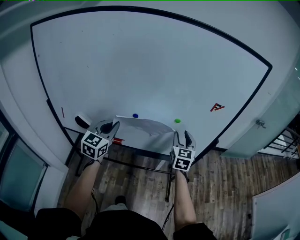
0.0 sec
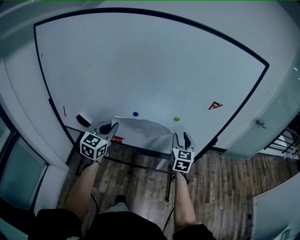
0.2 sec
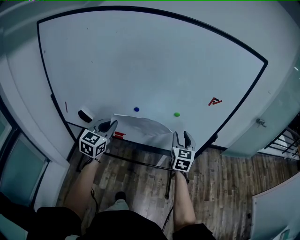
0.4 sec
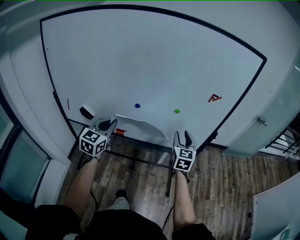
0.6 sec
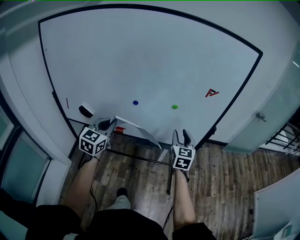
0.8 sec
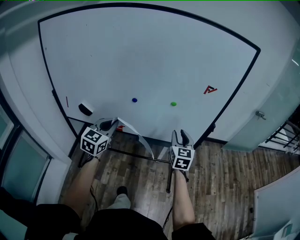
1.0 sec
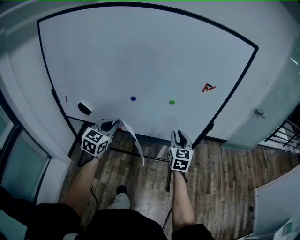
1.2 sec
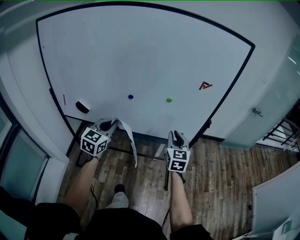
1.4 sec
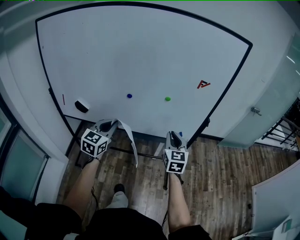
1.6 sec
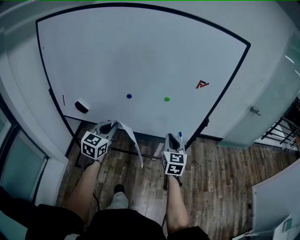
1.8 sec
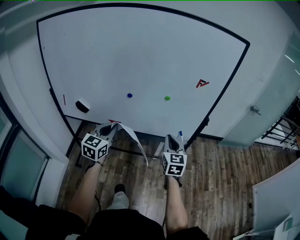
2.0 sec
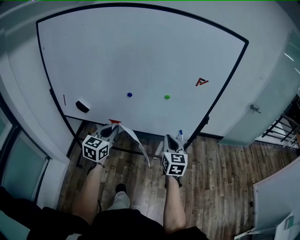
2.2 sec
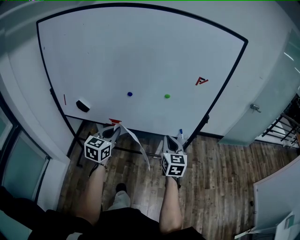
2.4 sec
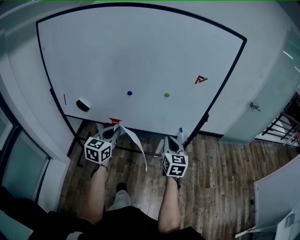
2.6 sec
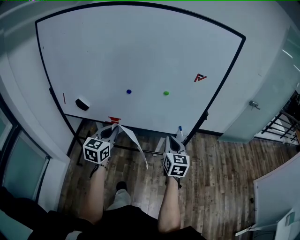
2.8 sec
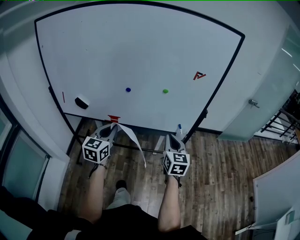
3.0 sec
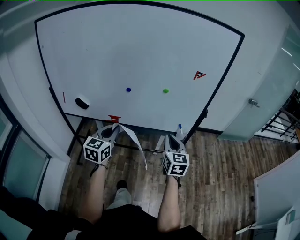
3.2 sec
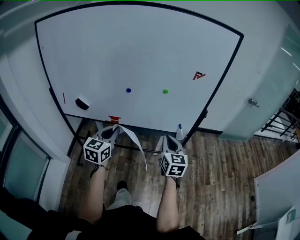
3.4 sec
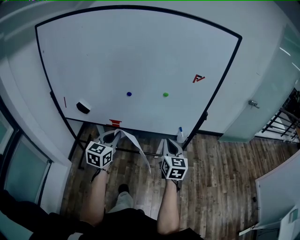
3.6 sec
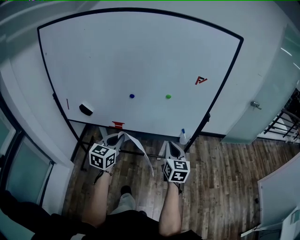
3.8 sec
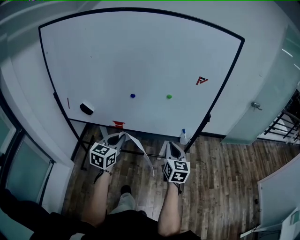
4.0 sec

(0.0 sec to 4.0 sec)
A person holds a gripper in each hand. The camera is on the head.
0.0 sec - 1.4 sec: The right gripper moves backward, roughly 10 cm, and closes up. Meanwhile the left gripper goes about 10 cm backward and to the right.
1.4 sec - 2.6 sec: The grippers both shift backward by roughly 5 cm.
2.6 sec - 4.0 sec: The grippers move only a little.

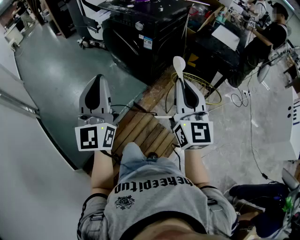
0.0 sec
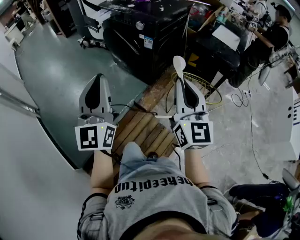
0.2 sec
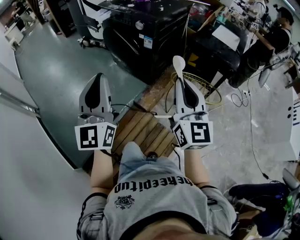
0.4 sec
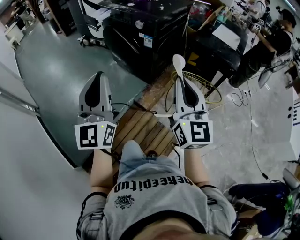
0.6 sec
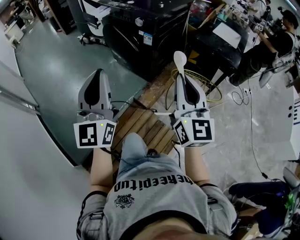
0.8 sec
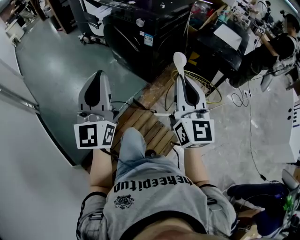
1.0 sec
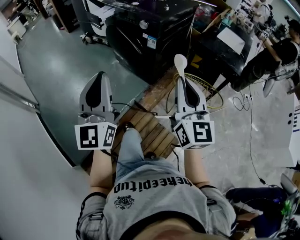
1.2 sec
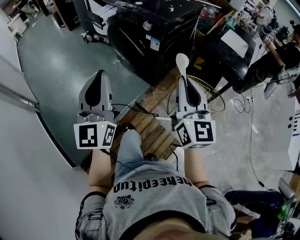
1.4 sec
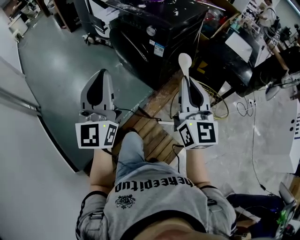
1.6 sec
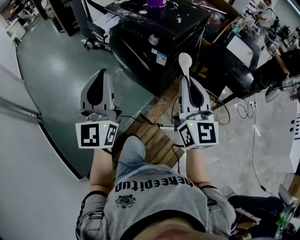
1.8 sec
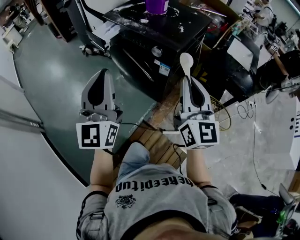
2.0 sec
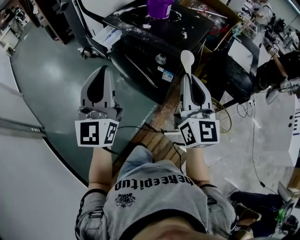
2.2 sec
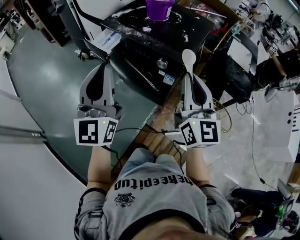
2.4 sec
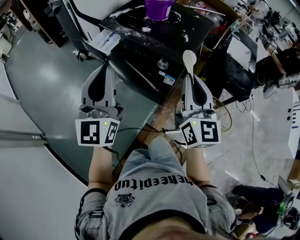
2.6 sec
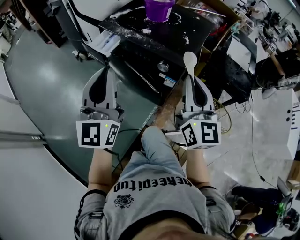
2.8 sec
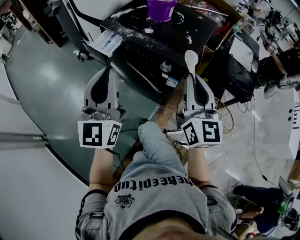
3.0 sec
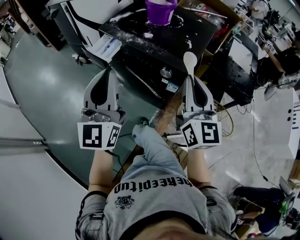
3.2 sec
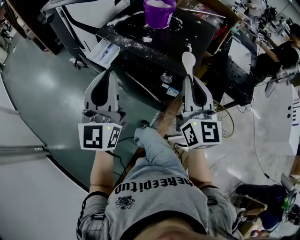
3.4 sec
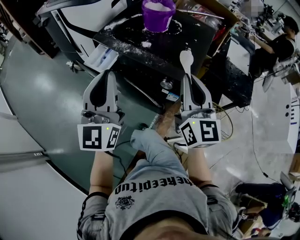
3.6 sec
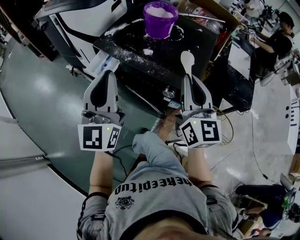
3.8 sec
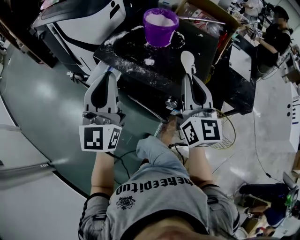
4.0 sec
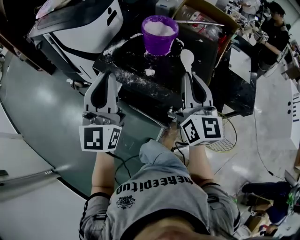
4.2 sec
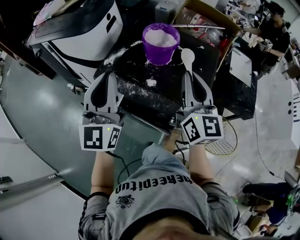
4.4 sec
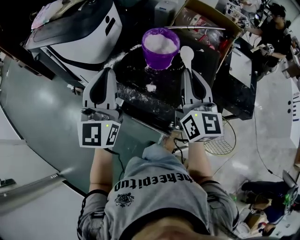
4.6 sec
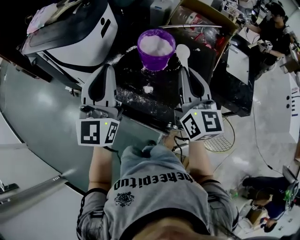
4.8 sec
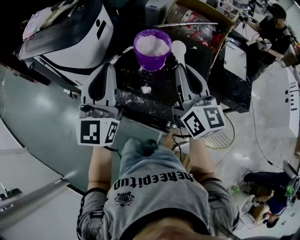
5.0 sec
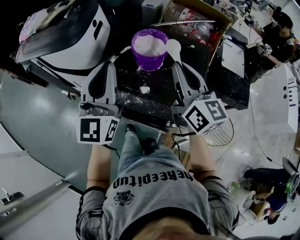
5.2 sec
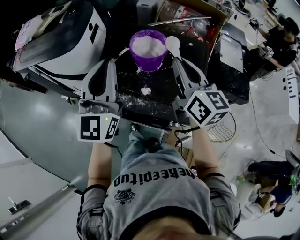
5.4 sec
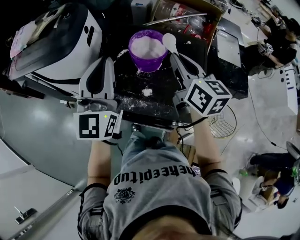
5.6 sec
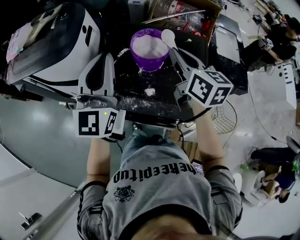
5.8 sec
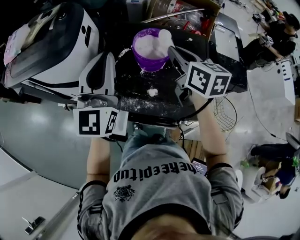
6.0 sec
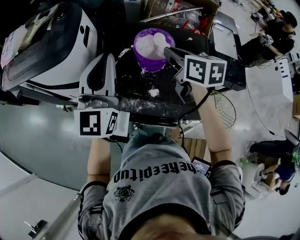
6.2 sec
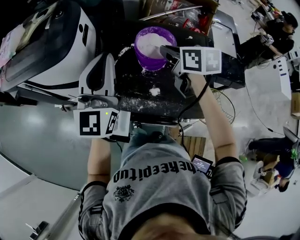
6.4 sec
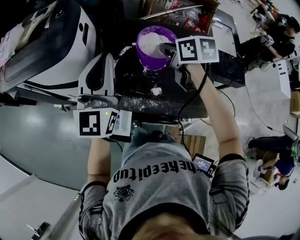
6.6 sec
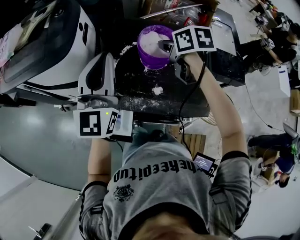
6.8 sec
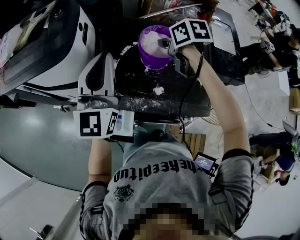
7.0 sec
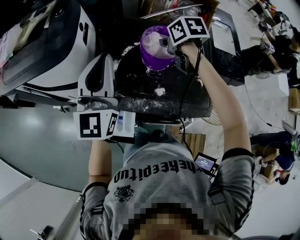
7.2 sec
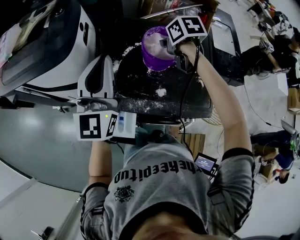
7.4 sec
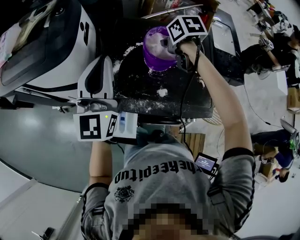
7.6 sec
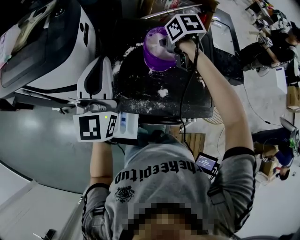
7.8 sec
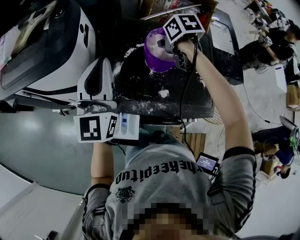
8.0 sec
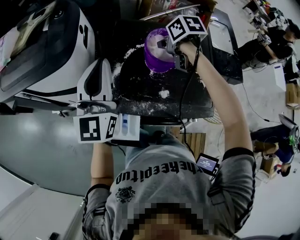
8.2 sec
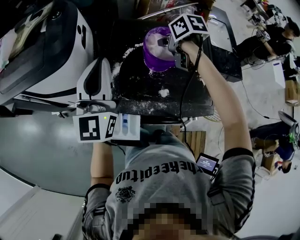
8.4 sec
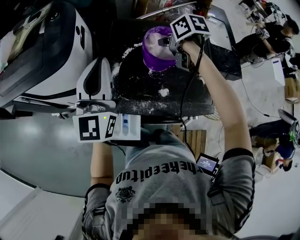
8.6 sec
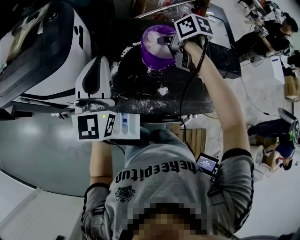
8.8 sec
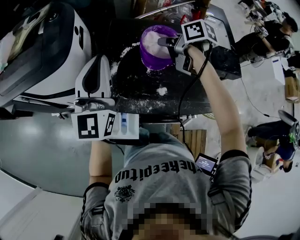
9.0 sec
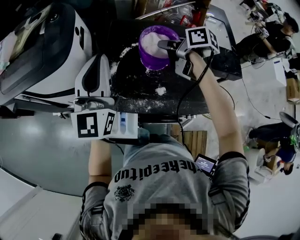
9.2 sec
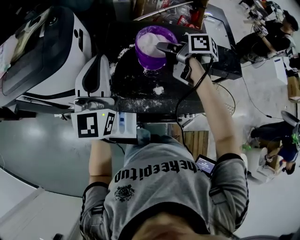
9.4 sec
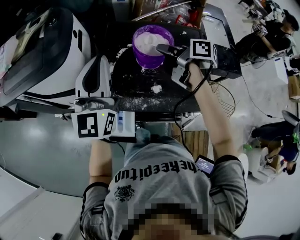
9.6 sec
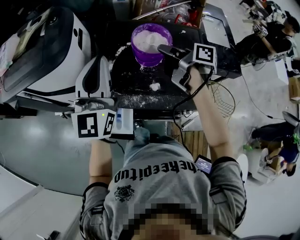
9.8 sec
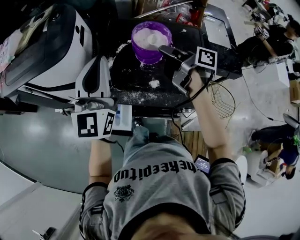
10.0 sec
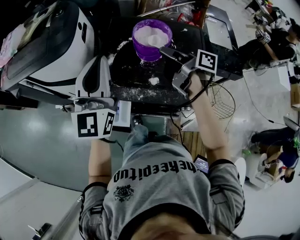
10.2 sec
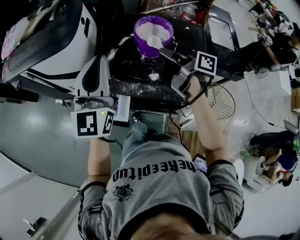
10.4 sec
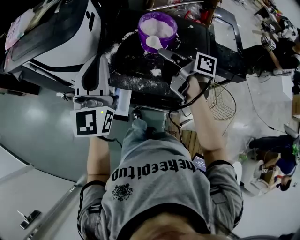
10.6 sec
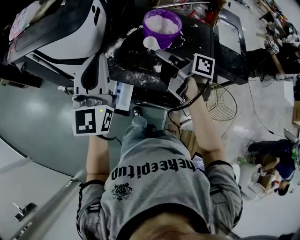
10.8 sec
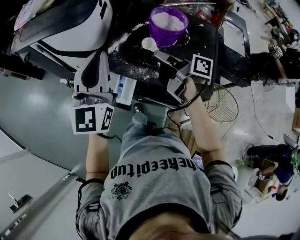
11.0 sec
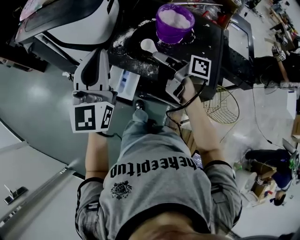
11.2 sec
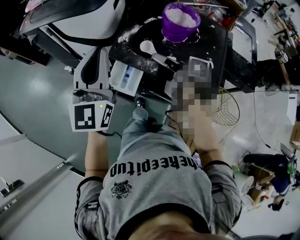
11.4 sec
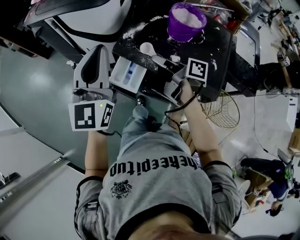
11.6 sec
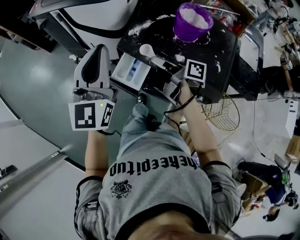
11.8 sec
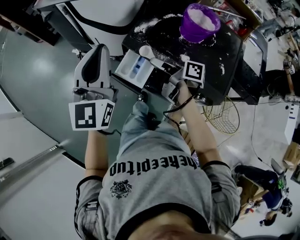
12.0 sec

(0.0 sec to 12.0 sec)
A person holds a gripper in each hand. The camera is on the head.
0.0 sec - 1.6 sec: Both grippers move forward, approximately 10 cm.
1.6 sec - 3.0 sec: The right gripper moves forward and to the left, approximately 25 cm; the left gripper moves forward, approximately 30 cm.
3.0 sec - 4.4 sec: Both grippers move forward, approximately 30 cm.
4.4 sec - 6.0 sec: Both grippers move forward, about 15 cm. The right gripper changes its angle by roughly 30 degrees.
6.0 sec - 7.6 sec: The right gripper heads downward and forward, covering approximately 15 cm, and tips its fingers downward by roughly 40 degrees, while the left gripper is displaced to the left by approximately 5 cm.
7.6 sec - 9.0 sec: The right gripper changes its angle by approximately 30 degrees.
9.0 sec - 10.4 sec: The grippers both shift backward by about 10 cm. The right gripper points its fingers some 30 degrees further upward.
10.4 sec - 12.0 sec: The right gripper travels to the left and downward by about 25 cm, and turns by roughly 30 degrees, while the left gripper is displaced to the left and backward by some 15 cm, and swivels approximately 20 degrees.

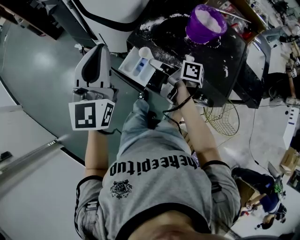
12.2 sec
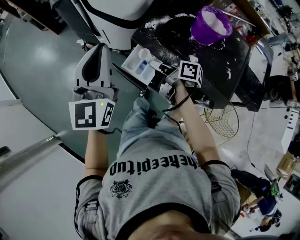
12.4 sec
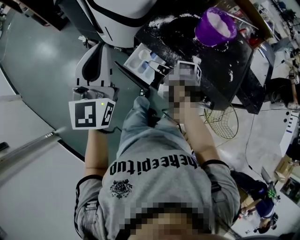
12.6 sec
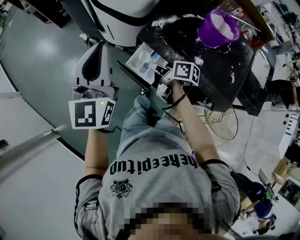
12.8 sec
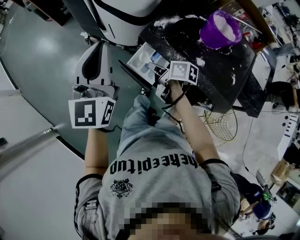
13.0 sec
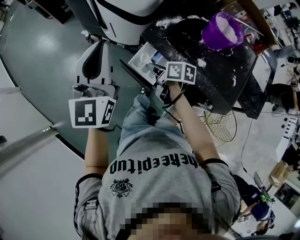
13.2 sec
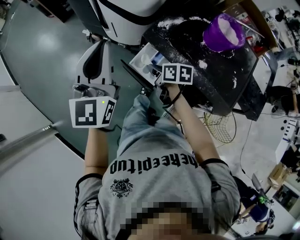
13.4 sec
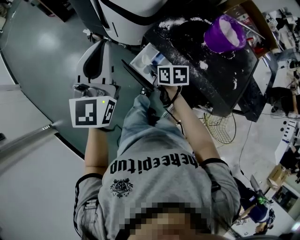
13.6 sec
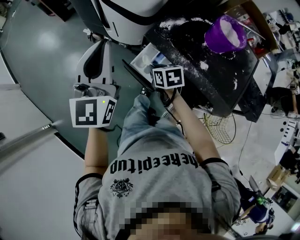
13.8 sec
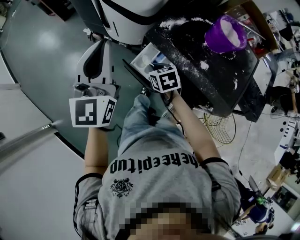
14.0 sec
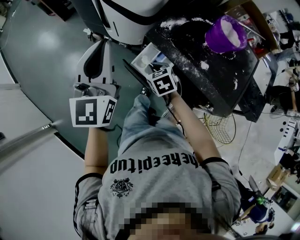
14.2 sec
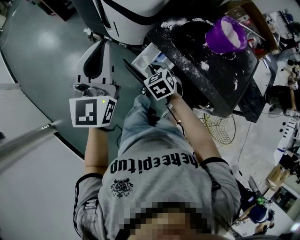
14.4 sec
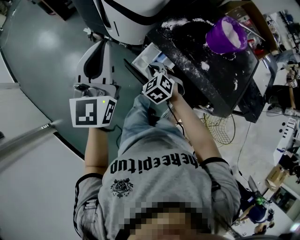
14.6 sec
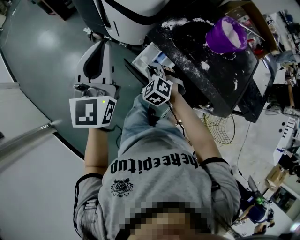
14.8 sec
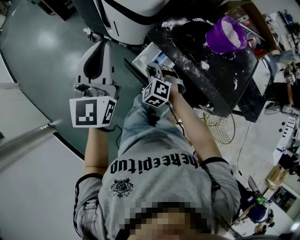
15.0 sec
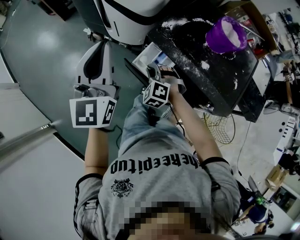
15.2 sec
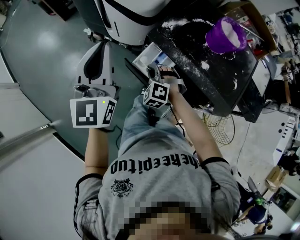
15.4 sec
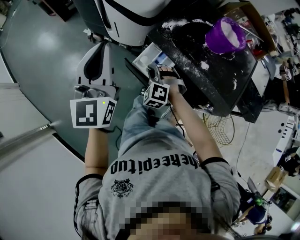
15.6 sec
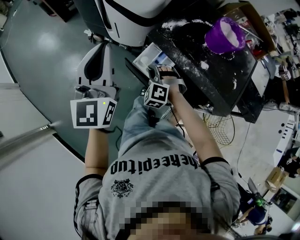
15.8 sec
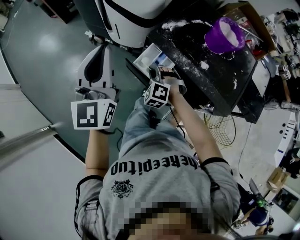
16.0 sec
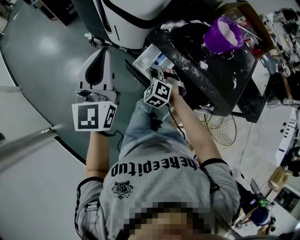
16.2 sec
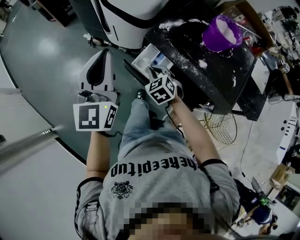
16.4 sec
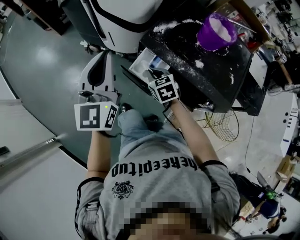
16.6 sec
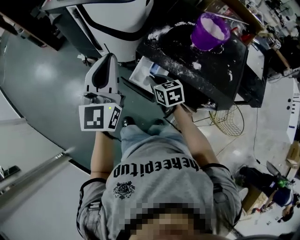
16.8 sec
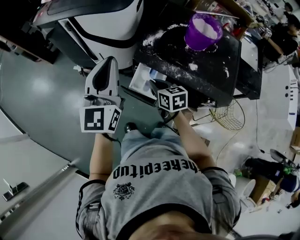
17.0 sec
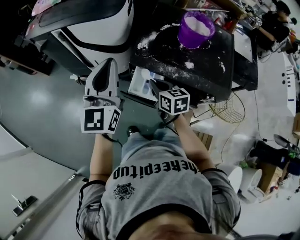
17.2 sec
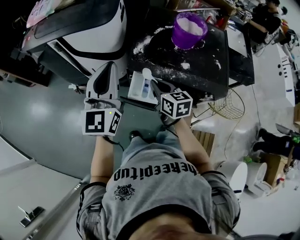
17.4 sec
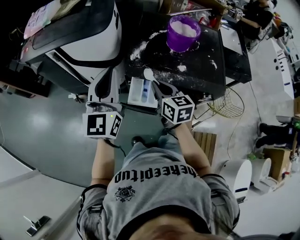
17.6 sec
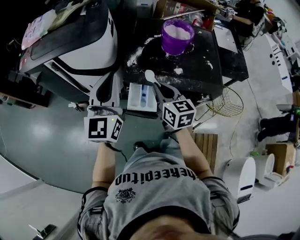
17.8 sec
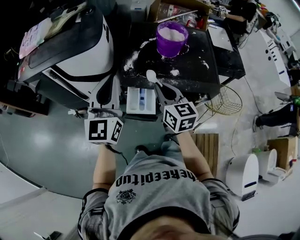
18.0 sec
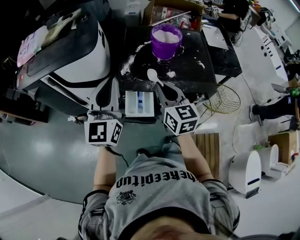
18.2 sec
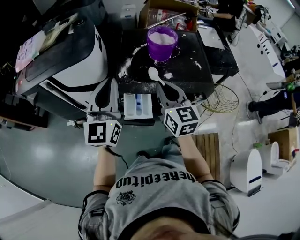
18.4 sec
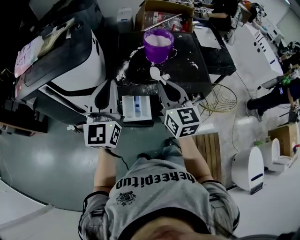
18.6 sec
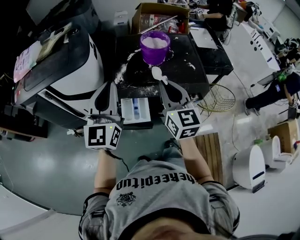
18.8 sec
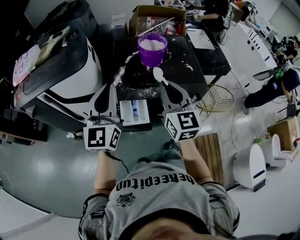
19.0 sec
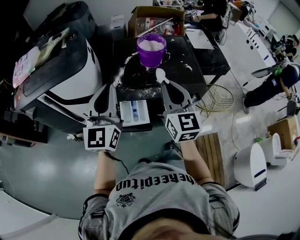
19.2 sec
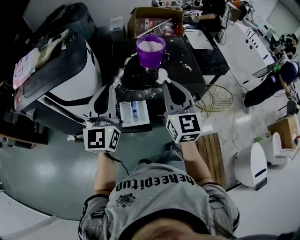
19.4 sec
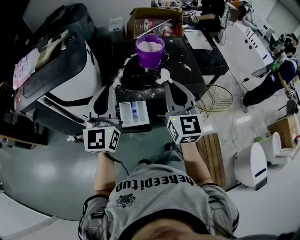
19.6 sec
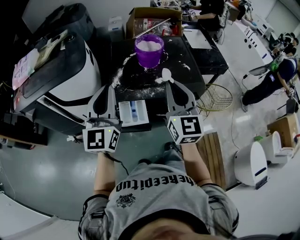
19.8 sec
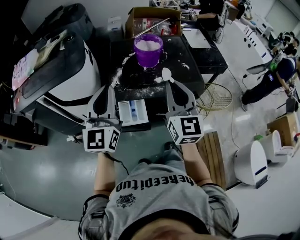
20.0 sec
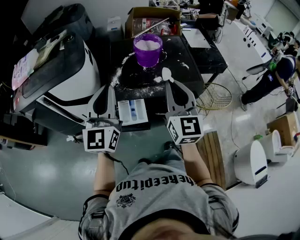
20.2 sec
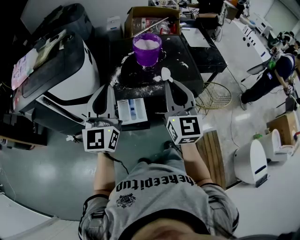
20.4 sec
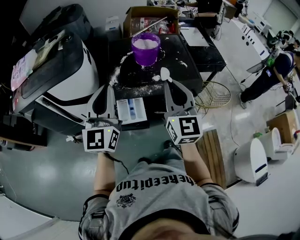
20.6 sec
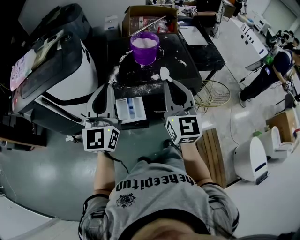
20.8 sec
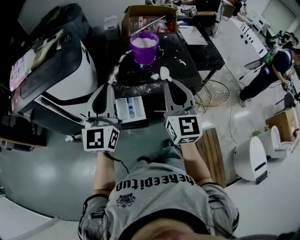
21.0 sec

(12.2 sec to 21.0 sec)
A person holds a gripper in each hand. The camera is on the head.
12.2 sec - 13.6 sec: The left gripper goes about 5 cm to the left, while the right gripper shifts about 10 cm downward and to the left, and points its fingers about 30 degrees further downward.
13.6 sec - 15.2 sec: The right gripper rotates around the line of its fingers by approximately 80 degrees, counterclockwise from behind.
15.2 sec - 16.6 sec: The right gripper rolls clockwise, seen from behind, by roughly 60 degrees.
16.6 sec - 18.0 sec: The right gripper heads upward, covering about 20 cm, and tilts its fingers approximately 30 degrees upward. The left gripper moves about 10 cm, and changes its angle by roughly 30 degrees.
18.0 sec - 19.6 sec: The right gripper moves upward and to the right, some 15 cm, and rotates roughly 30 degrees.
19.6 sec - 21.0 sec: The grippers move only a little.
